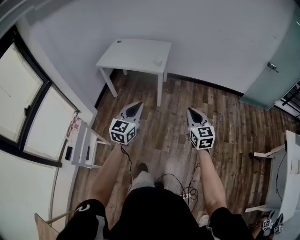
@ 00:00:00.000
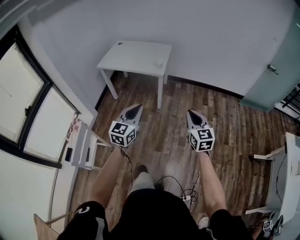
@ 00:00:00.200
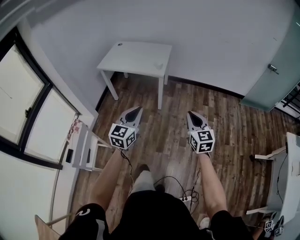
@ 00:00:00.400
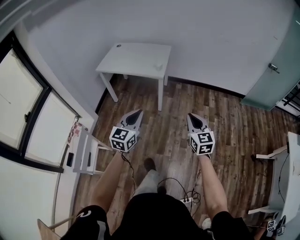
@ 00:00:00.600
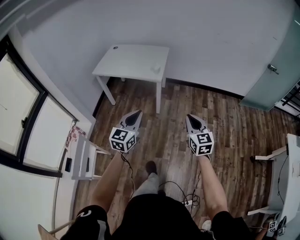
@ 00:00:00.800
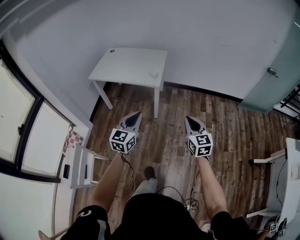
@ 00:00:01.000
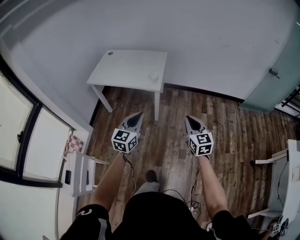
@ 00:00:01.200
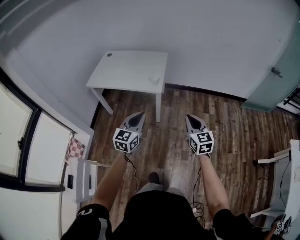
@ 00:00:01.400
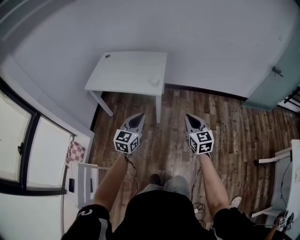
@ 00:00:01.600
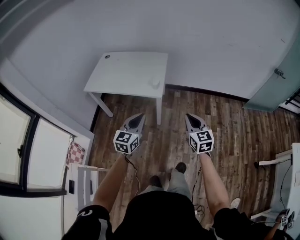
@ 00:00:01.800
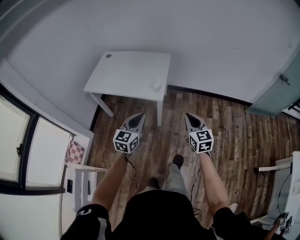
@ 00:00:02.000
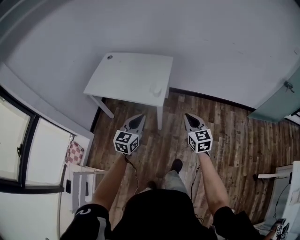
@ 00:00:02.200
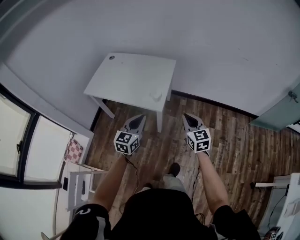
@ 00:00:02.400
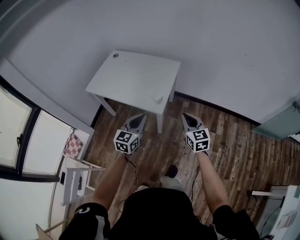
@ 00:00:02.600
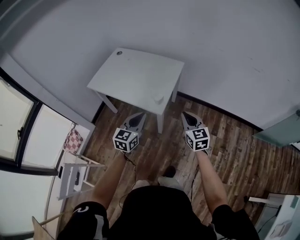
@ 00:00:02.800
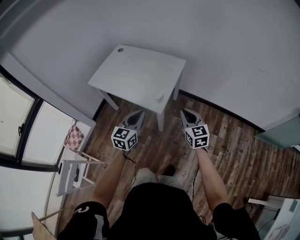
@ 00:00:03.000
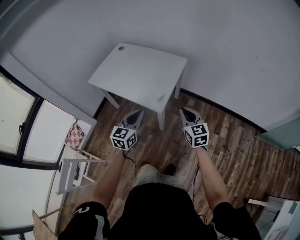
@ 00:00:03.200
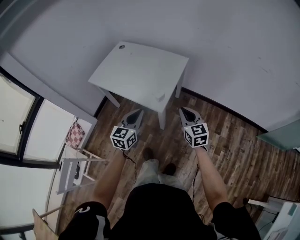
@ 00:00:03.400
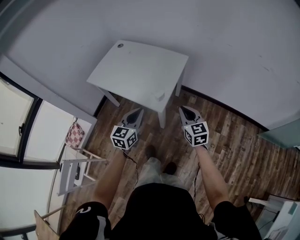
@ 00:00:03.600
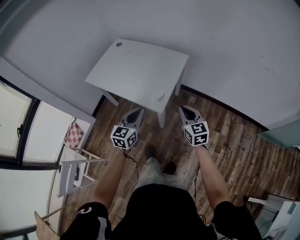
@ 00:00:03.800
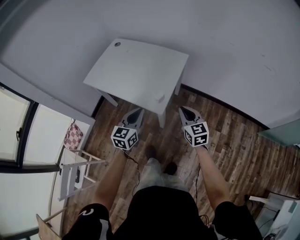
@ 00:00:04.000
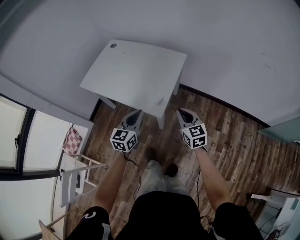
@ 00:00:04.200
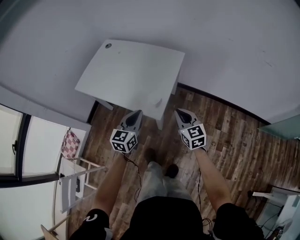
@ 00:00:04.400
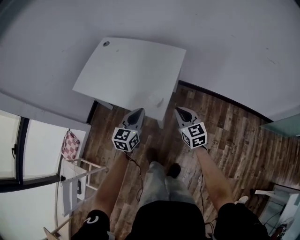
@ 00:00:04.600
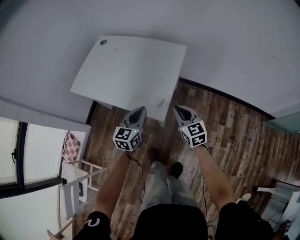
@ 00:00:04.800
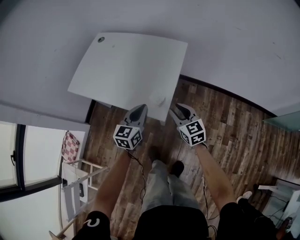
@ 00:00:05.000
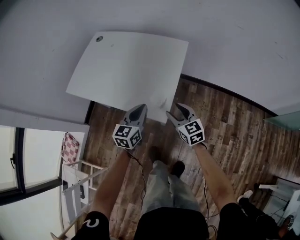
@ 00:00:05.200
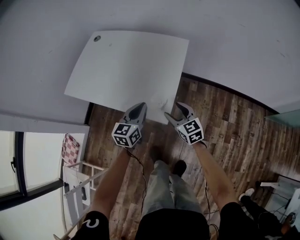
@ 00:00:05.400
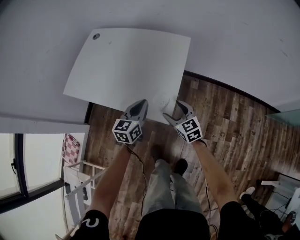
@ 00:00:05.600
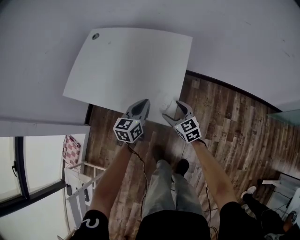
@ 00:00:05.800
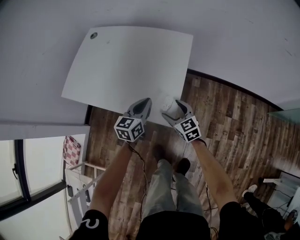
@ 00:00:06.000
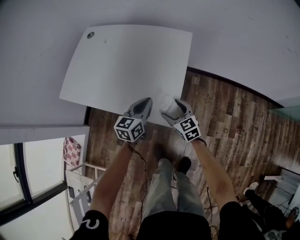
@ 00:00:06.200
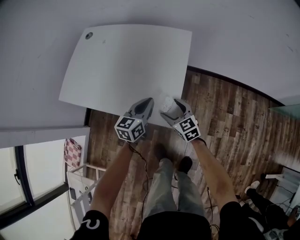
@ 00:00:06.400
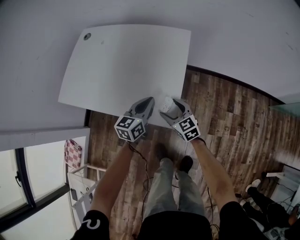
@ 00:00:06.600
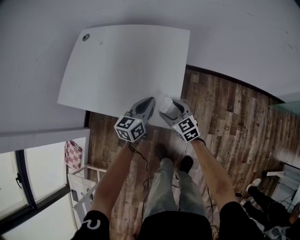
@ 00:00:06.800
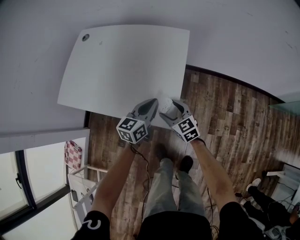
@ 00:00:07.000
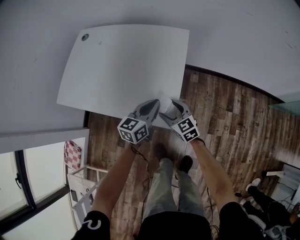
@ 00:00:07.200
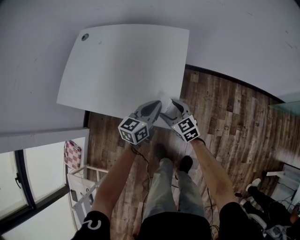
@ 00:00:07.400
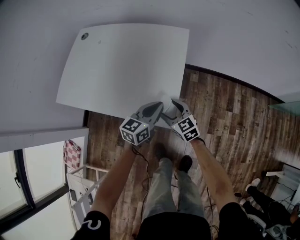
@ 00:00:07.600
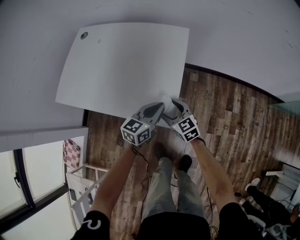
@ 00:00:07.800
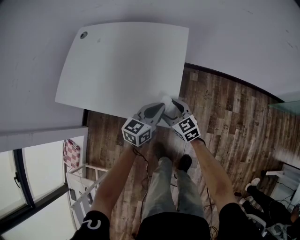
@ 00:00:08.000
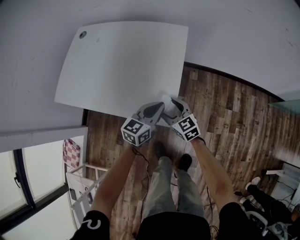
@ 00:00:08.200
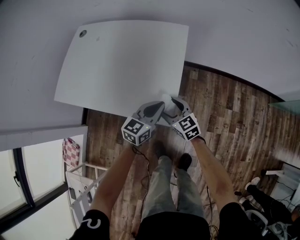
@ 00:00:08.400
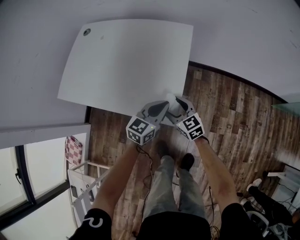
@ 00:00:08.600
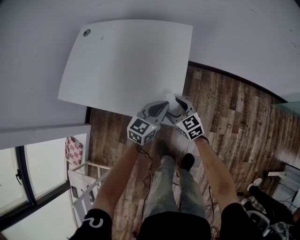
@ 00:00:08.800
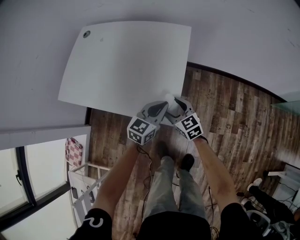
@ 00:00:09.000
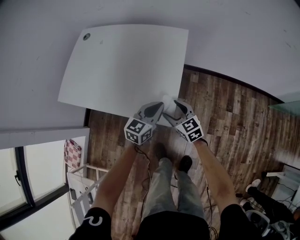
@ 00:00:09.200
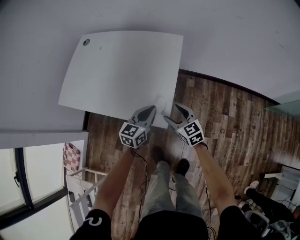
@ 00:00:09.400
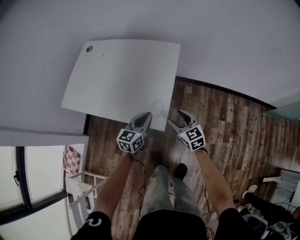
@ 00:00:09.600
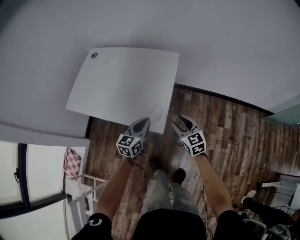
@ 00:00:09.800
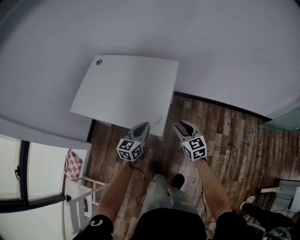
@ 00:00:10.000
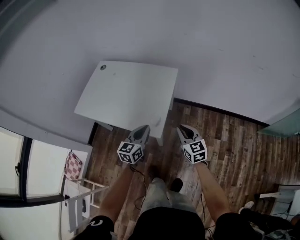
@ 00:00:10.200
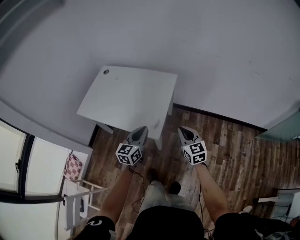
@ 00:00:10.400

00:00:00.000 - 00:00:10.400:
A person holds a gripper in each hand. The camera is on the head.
00:00:00.000 - 00:00:01.400: Both grippers move forward, about 20 cm.
00:00:01.400 - 00:00:03.000: The two grippers go about 30 cm forward.
00:00:03.000 - 00:00:04.400: Both grippers move forward and downward, approximately 15 cm.
00:00:04.400 - 00:00:06.000: The left gripper moves forward and downward, roughly 20 cm, while the right gripper travels downward, forward and to the left by some 25 cm, and opens.
00:00:06.000 - 00:00:07.400: The left gripper moves to the right, some 5 cm.
00:00:07.400 - 00:00:09.000: The grippers stay close to where they were, moving slightly.
00:00:09.000 - 00:00:10.400: The right gripper moves upward, to the right and backward, roughly 30 cm, and closes up, while the left gripper moves upward and backward, about 25 cm, and rotates some 20 degrees.

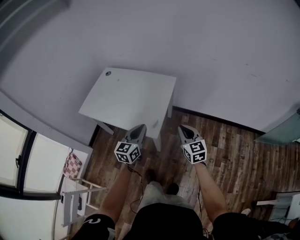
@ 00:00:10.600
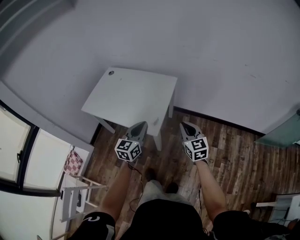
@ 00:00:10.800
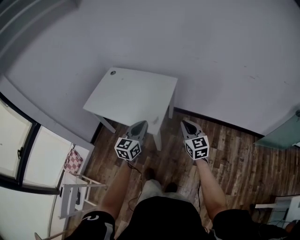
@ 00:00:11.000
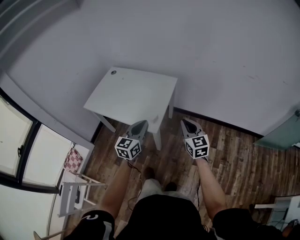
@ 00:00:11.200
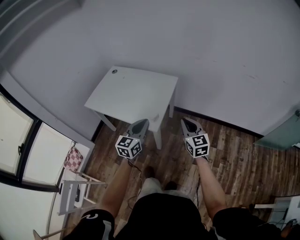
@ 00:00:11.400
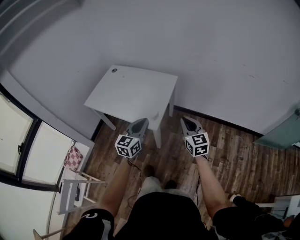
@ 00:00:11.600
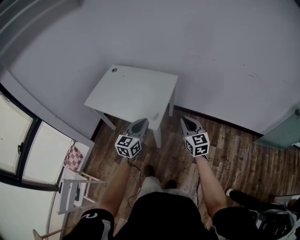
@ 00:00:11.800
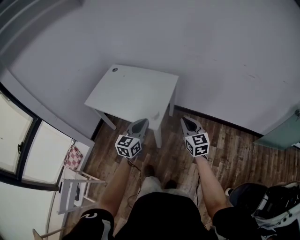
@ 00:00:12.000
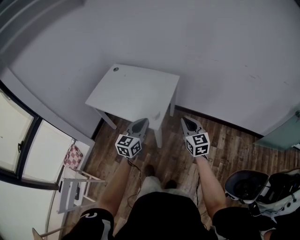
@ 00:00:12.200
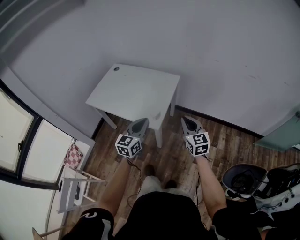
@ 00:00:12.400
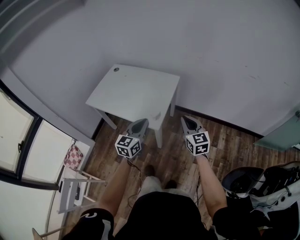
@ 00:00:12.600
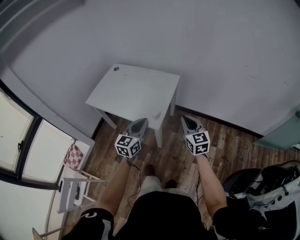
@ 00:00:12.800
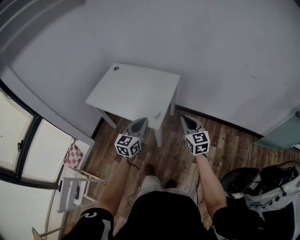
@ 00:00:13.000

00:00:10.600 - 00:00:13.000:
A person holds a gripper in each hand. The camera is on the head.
00:00:10.600 - 00:00:11.800: The left gripper shifts roughly 5 cm backward. Meanwhile the right gripper shifts roughly 10 cm upward and backward.
00:00:11.800 - 00:00:13.000: There are only small adjustments of the grippers.

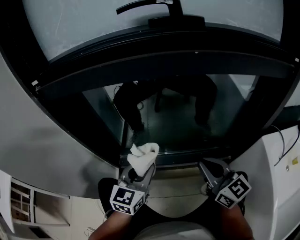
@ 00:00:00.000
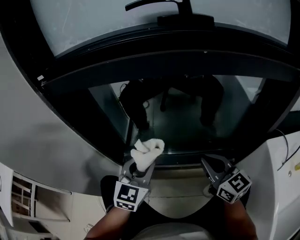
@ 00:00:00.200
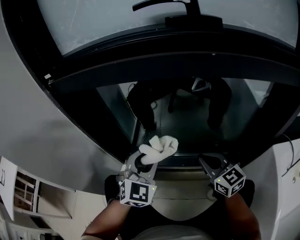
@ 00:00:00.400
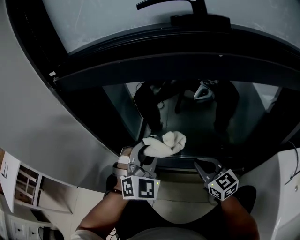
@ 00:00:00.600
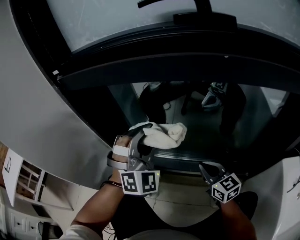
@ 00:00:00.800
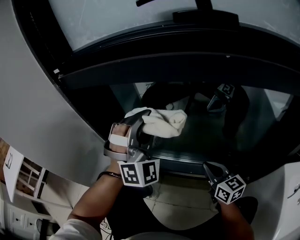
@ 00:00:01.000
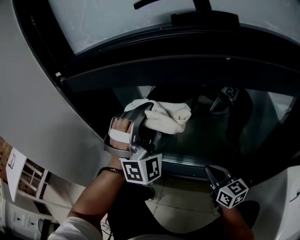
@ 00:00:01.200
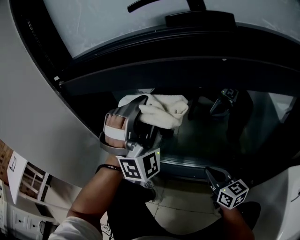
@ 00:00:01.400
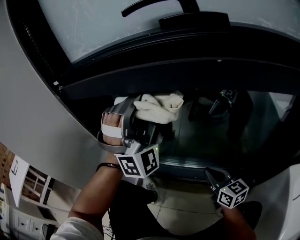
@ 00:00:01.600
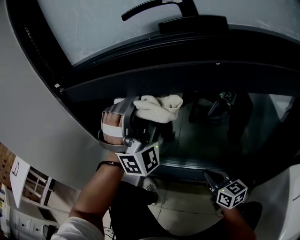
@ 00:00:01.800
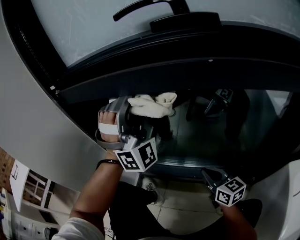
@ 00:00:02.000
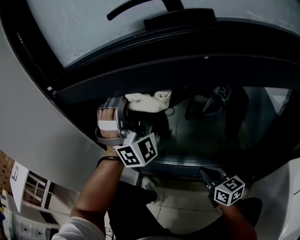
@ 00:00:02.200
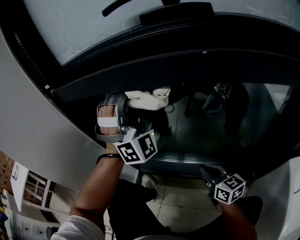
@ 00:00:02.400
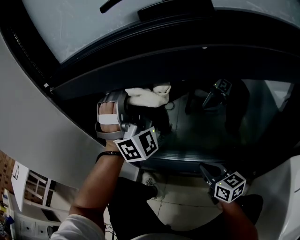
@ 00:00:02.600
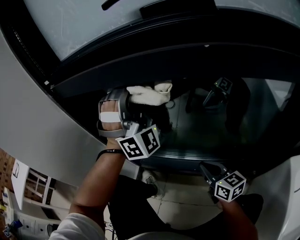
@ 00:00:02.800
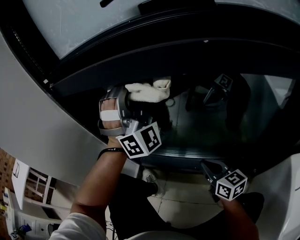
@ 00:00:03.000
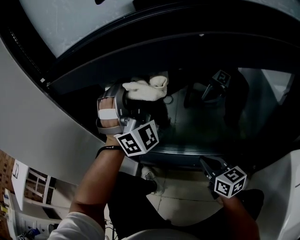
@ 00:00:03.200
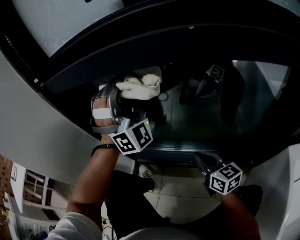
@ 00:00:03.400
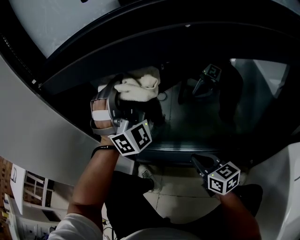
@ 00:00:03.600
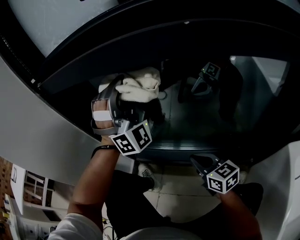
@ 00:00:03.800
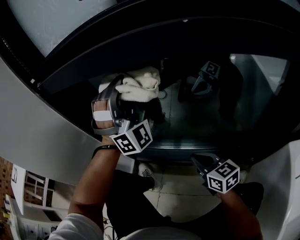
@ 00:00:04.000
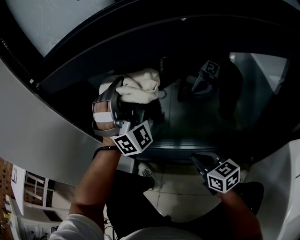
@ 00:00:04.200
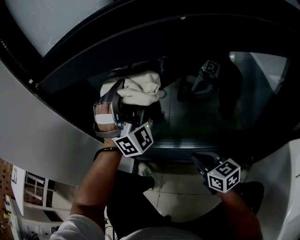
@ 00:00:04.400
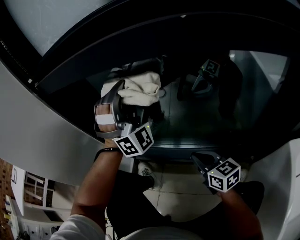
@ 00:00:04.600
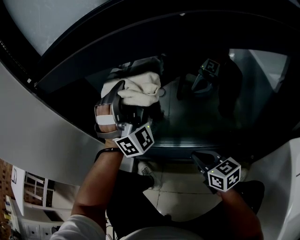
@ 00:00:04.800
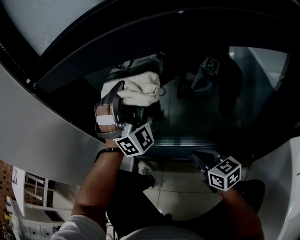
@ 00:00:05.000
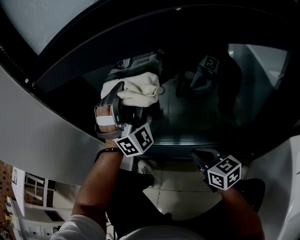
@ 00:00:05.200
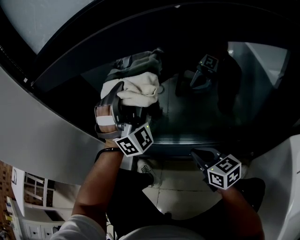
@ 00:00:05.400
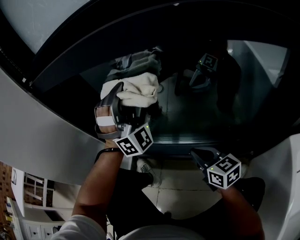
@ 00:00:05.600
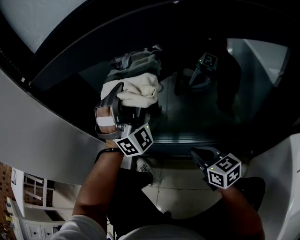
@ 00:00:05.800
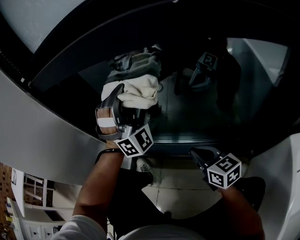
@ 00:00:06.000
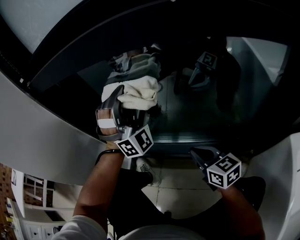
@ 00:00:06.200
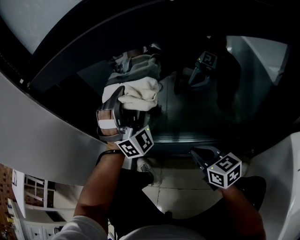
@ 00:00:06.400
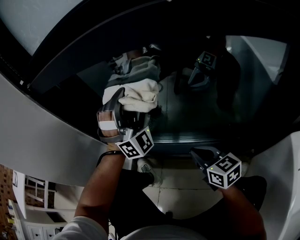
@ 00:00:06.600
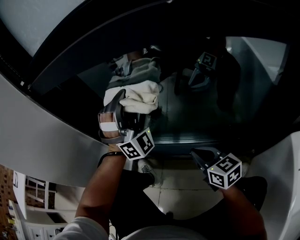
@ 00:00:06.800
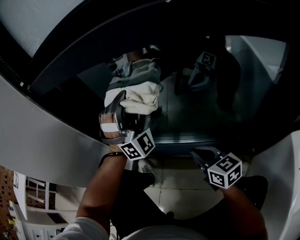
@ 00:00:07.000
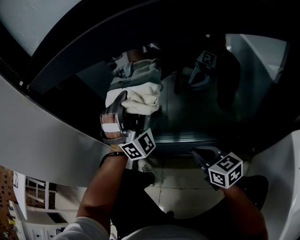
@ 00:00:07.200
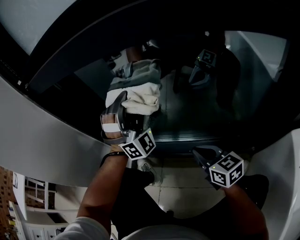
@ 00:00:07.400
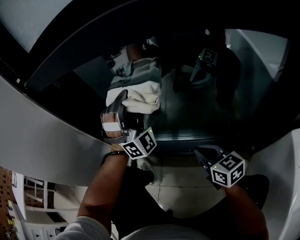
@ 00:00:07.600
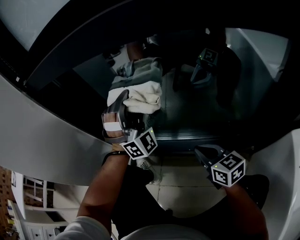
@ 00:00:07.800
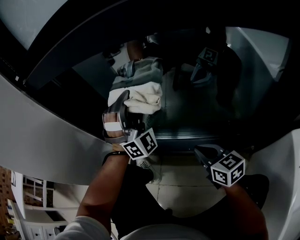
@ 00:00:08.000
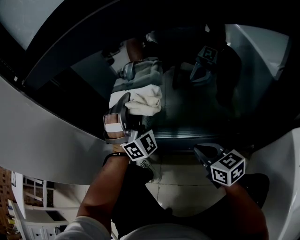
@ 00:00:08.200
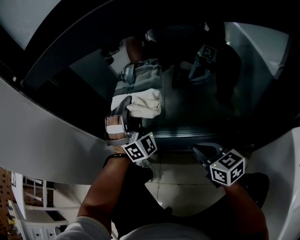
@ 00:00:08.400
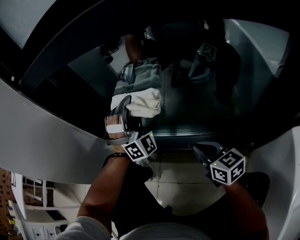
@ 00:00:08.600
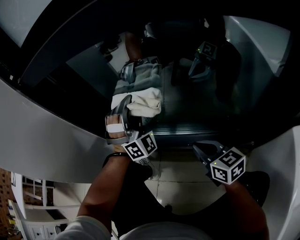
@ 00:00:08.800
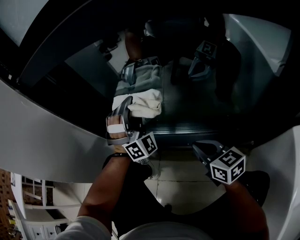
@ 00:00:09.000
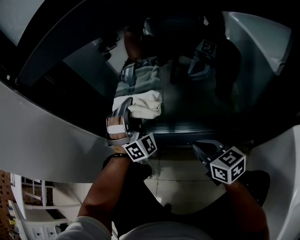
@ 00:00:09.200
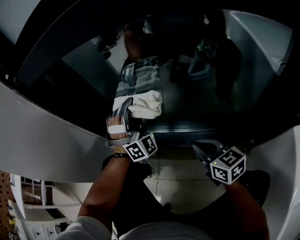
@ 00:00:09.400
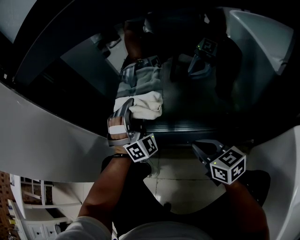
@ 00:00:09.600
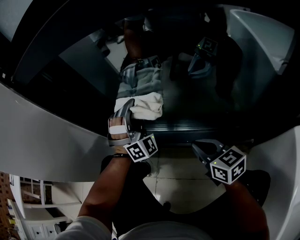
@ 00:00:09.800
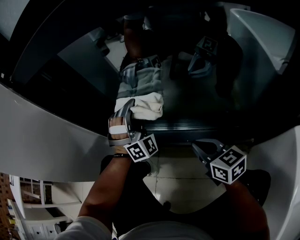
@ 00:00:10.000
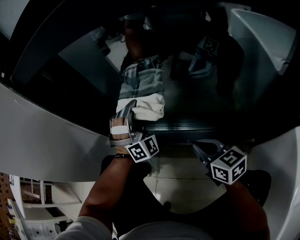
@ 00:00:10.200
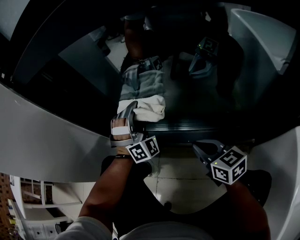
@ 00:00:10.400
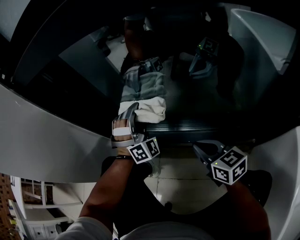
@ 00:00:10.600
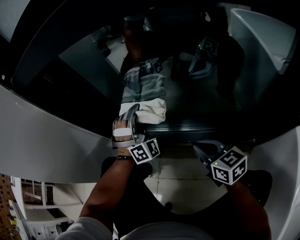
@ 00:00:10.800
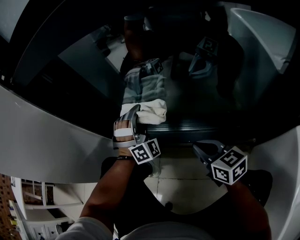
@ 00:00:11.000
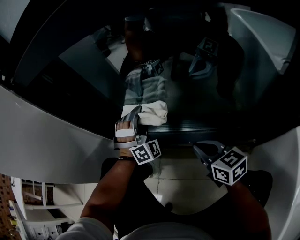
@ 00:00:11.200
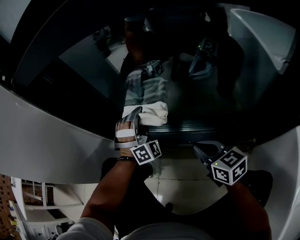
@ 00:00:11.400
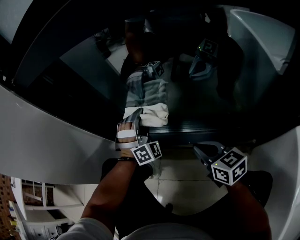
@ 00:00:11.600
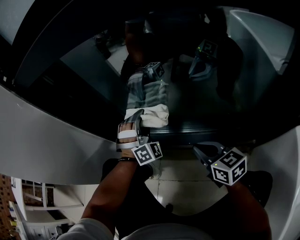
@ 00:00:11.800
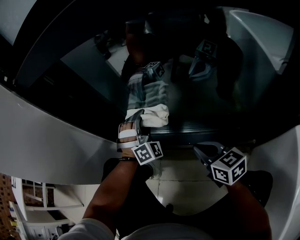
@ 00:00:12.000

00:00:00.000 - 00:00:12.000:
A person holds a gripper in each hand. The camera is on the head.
00:00:00.000 - 00:00:01.600: The right gripper goes roughly 15 cm downward.
